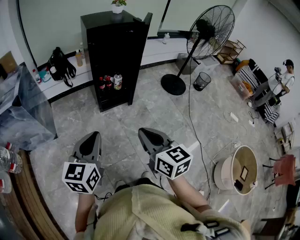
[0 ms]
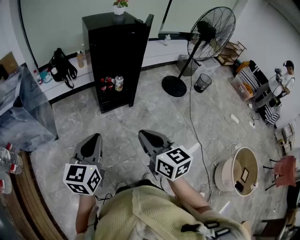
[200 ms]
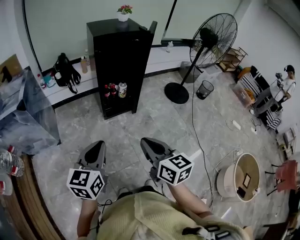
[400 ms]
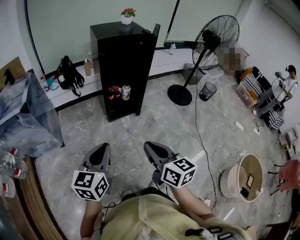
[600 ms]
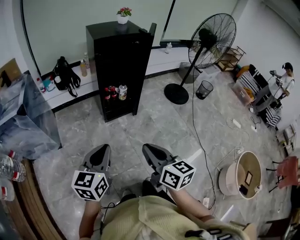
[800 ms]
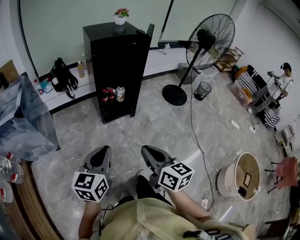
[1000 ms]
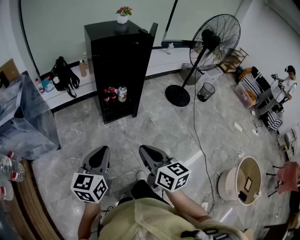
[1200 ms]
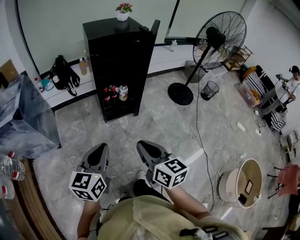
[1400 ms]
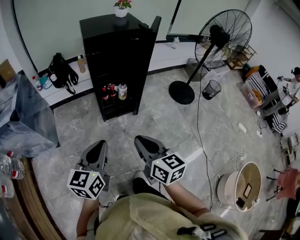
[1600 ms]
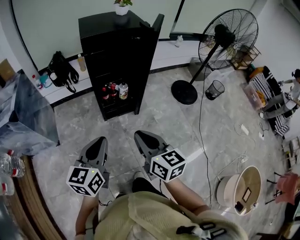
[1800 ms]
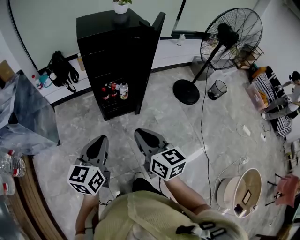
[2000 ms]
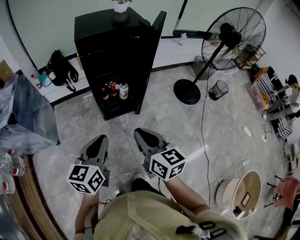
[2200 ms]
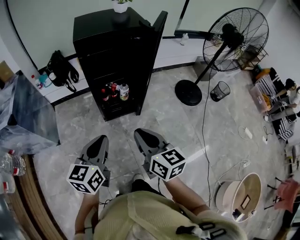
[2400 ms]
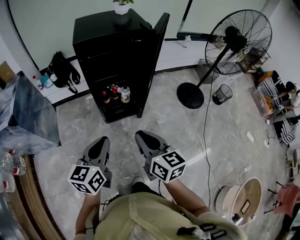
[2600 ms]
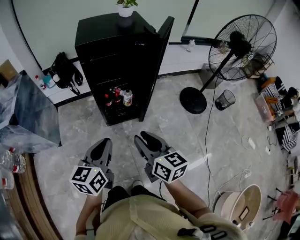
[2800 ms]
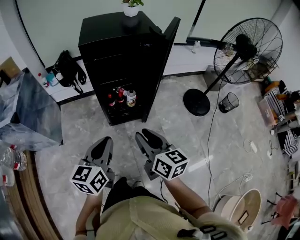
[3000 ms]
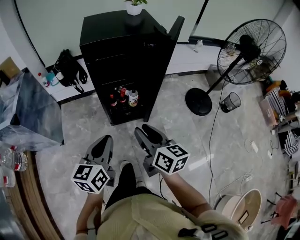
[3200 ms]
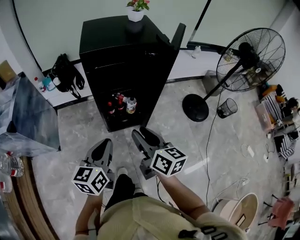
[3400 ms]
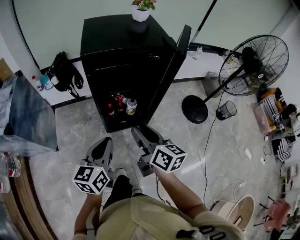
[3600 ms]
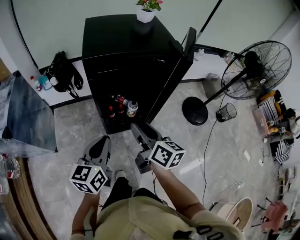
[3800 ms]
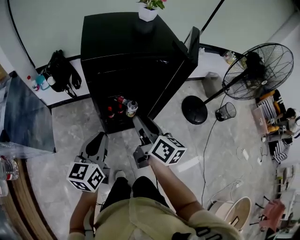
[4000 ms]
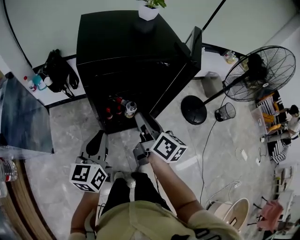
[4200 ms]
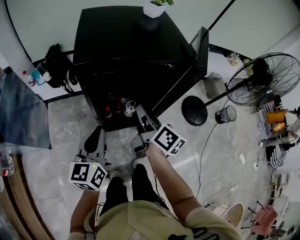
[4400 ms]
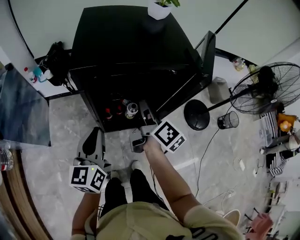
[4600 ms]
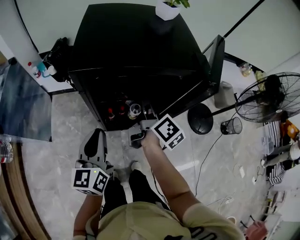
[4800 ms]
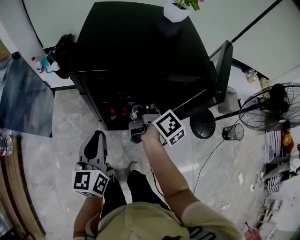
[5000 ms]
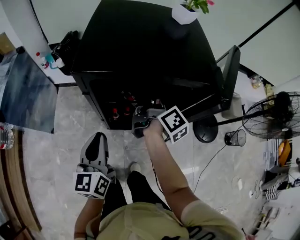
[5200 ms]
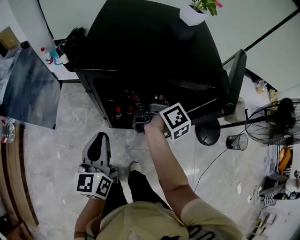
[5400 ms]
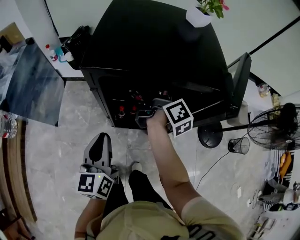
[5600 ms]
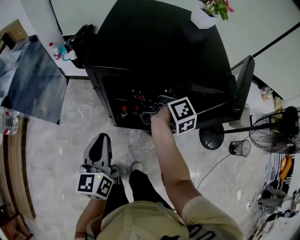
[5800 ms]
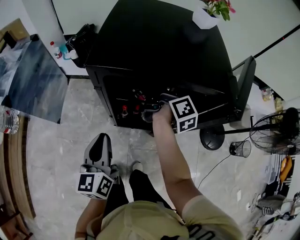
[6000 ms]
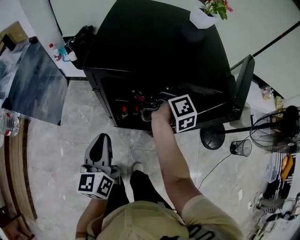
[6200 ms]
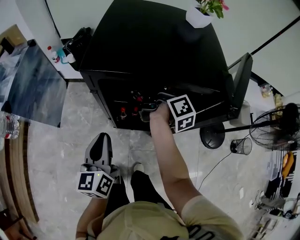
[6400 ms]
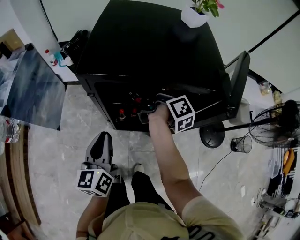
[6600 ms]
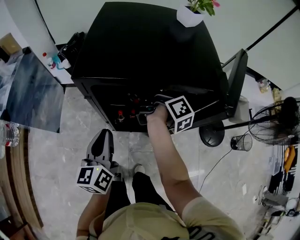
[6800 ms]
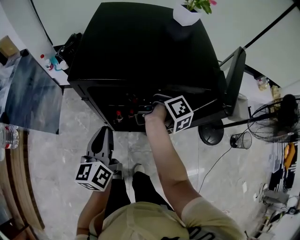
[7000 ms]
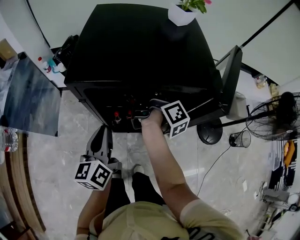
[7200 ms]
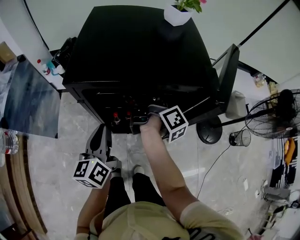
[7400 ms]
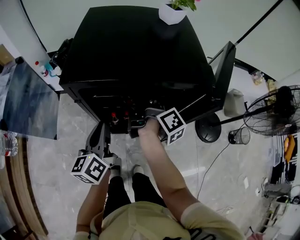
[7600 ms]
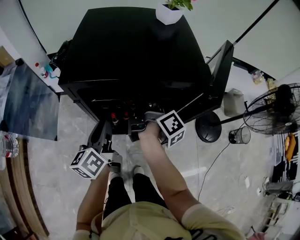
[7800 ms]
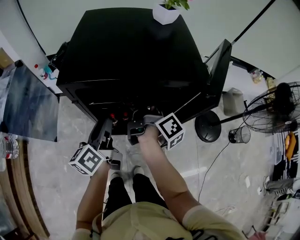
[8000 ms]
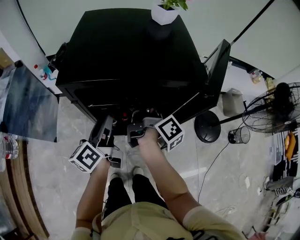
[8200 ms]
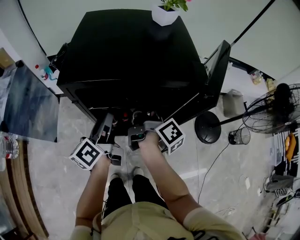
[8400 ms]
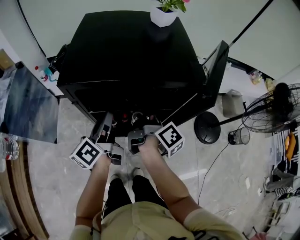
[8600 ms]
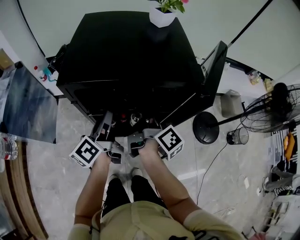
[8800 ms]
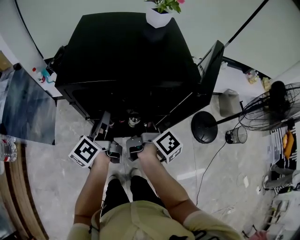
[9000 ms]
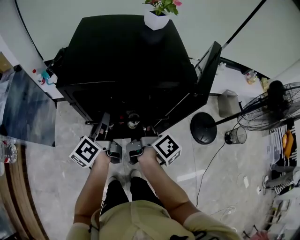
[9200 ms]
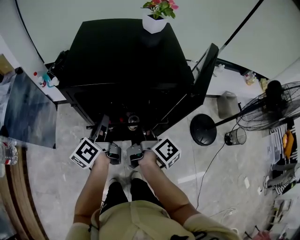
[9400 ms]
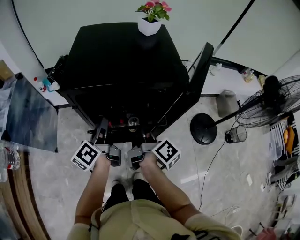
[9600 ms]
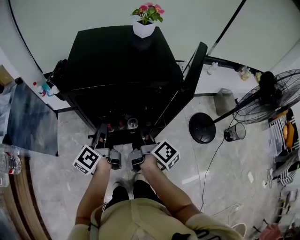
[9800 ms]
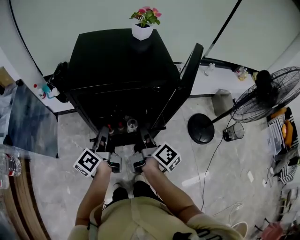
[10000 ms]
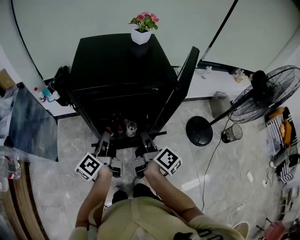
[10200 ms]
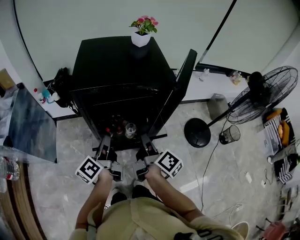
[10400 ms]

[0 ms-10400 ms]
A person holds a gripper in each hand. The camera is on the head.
0 ms to 1400 ms: Both grippers travel together forward, approximately 10 cm.
1400 ms to 3000 ms: The left gripper moves forward and to the right, some 20 cm. Meanwhile the right gripper heads forward, covering some 20 cm, and opens.
3000 ms to 4400 ms: The two grippers go approximately 25 cm forward. The right gripper swivels about 30 degrees.
4400 ms to 6000 ms: The right gripper heads forward, covering roughly 20 cm. The left gripper swivels some 30 degrees.
6000 ms to 7400 ms: The left gripper heads forward, covering about 5 cm.
7400 ms to 9000 ms: The left gripper shifts roughly 5 cm forward, turns by about 30 degrees, and opens. Meanwhile the right gripper travels backward by about 10 cm.
9000 ms to 10400 ms: The grippers both shift backward by roughly 10 cm. The left gripper closes its fingers.

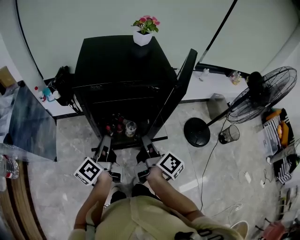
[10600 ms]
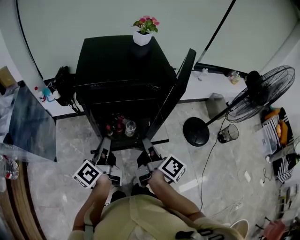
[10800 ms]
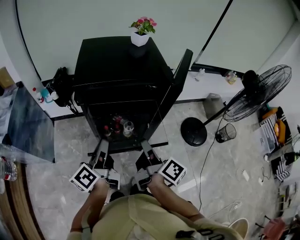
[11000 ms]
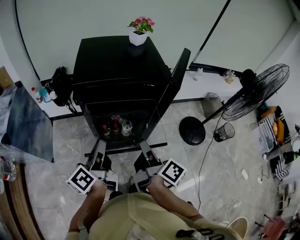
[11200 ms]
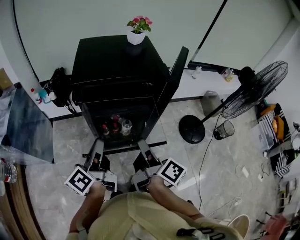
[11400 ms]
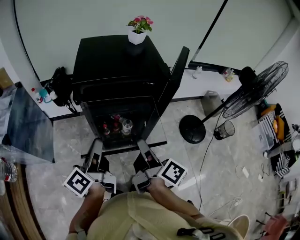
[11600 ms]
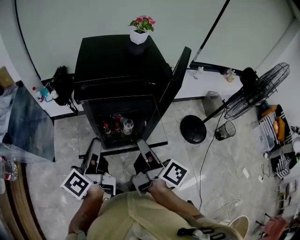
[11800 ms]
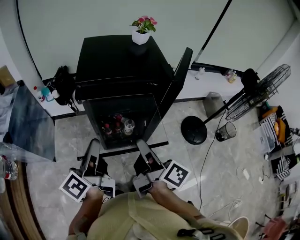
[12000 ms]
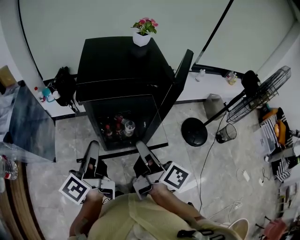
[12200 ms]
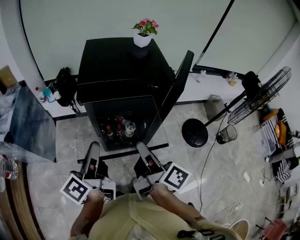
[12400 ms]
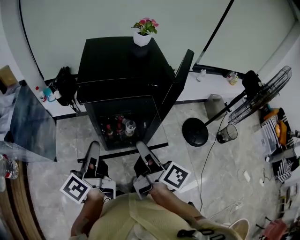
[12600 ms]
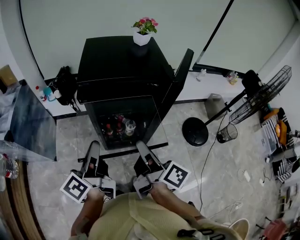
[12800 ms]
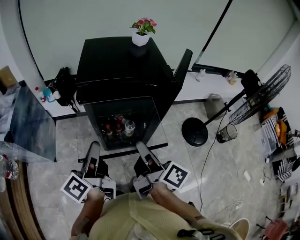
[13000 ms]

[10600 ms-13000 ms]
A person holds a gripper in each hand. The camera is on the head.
10600 ms to 11800 ms: The two grippers go about 10 cm upward and backward.
11800 ms to 13000 ms: The grippers stay close to where they were, moving slightly.

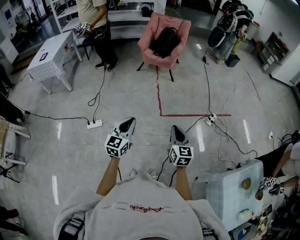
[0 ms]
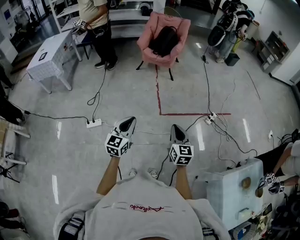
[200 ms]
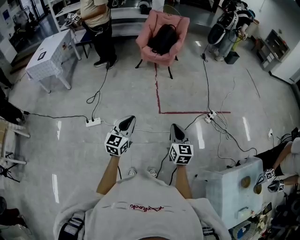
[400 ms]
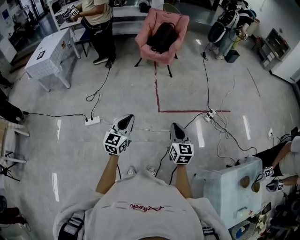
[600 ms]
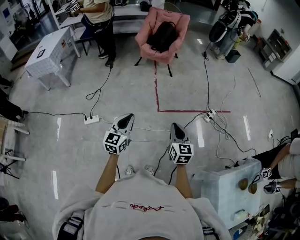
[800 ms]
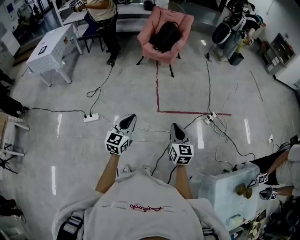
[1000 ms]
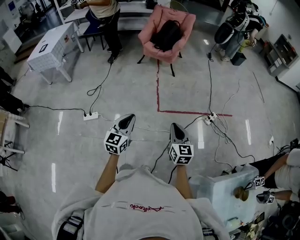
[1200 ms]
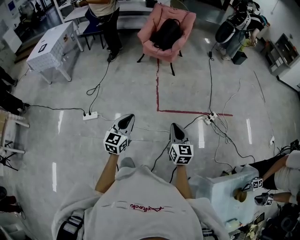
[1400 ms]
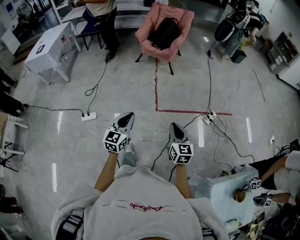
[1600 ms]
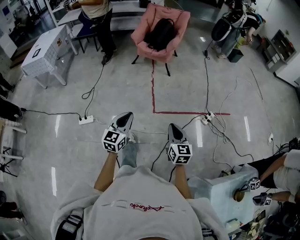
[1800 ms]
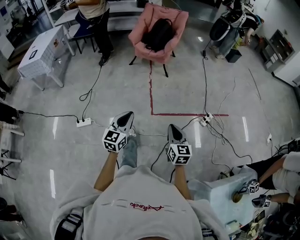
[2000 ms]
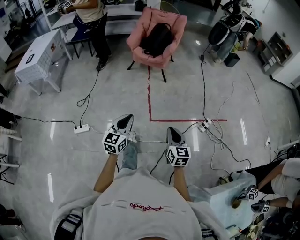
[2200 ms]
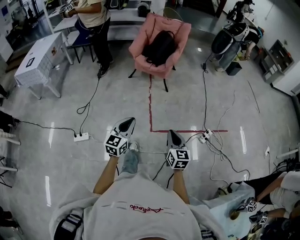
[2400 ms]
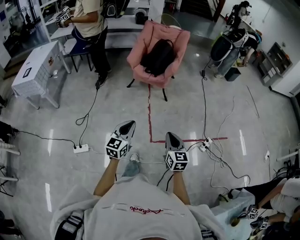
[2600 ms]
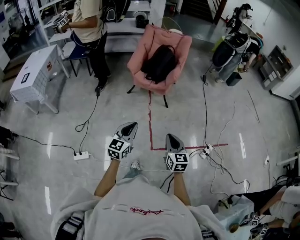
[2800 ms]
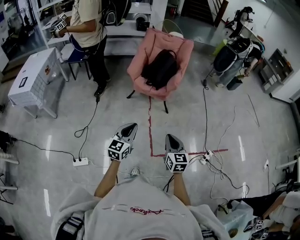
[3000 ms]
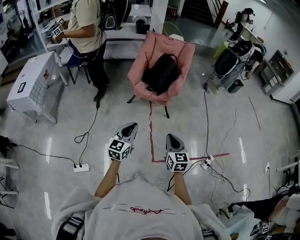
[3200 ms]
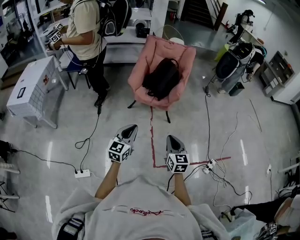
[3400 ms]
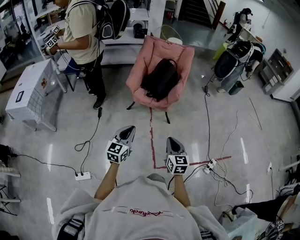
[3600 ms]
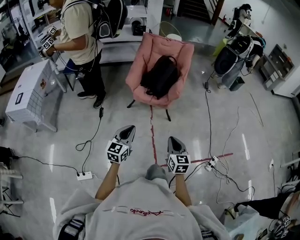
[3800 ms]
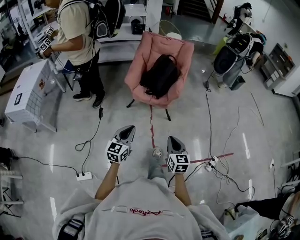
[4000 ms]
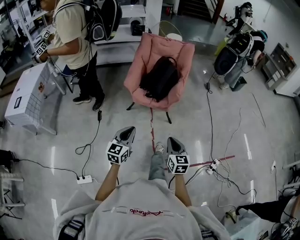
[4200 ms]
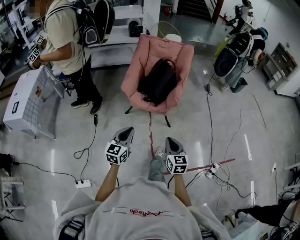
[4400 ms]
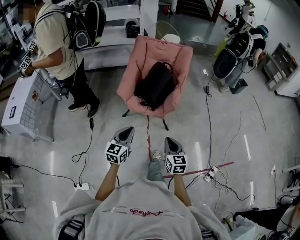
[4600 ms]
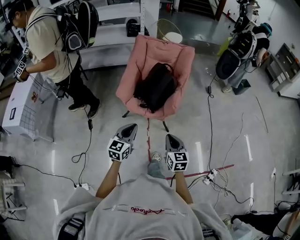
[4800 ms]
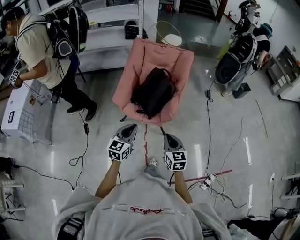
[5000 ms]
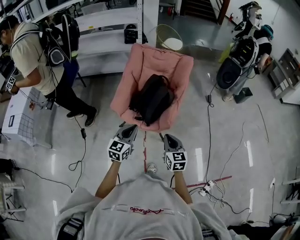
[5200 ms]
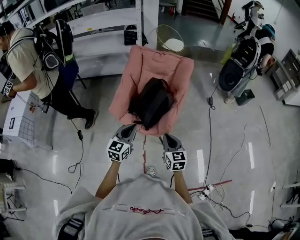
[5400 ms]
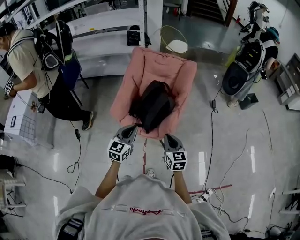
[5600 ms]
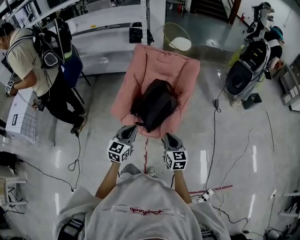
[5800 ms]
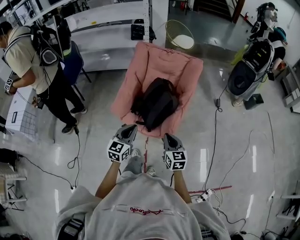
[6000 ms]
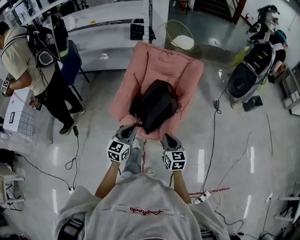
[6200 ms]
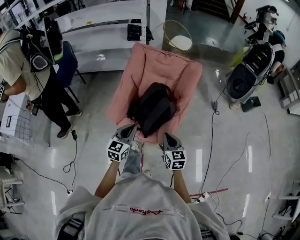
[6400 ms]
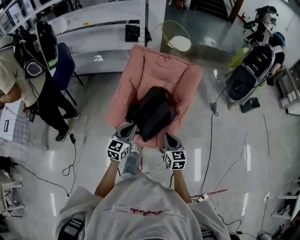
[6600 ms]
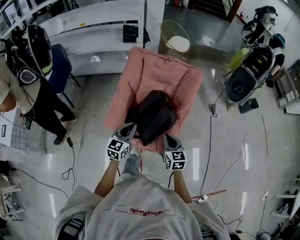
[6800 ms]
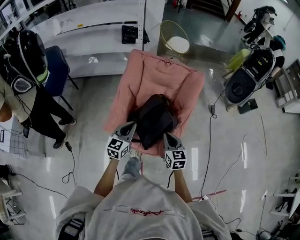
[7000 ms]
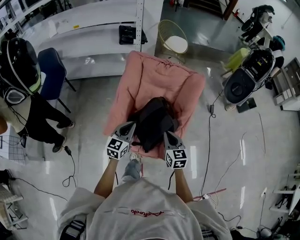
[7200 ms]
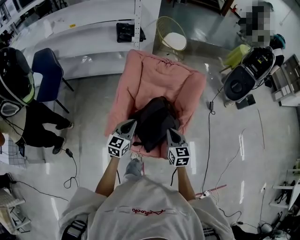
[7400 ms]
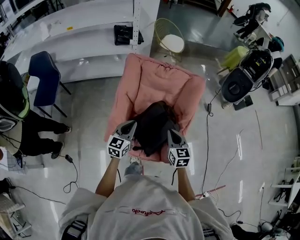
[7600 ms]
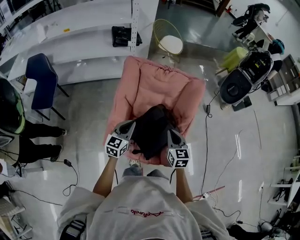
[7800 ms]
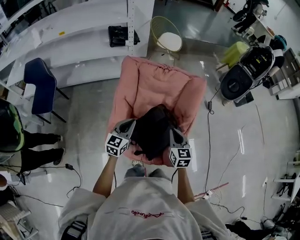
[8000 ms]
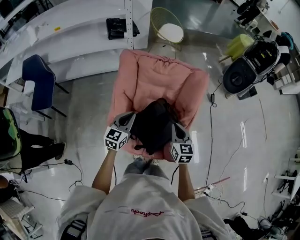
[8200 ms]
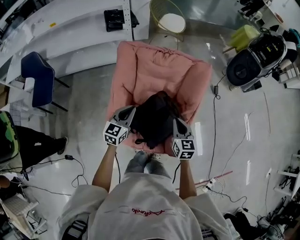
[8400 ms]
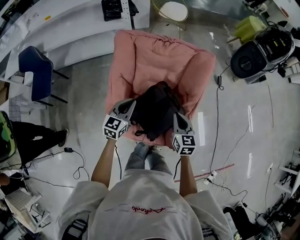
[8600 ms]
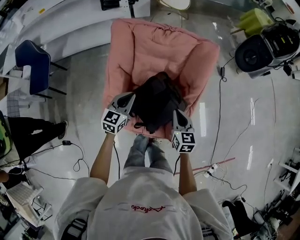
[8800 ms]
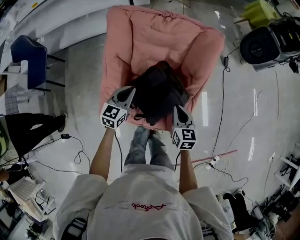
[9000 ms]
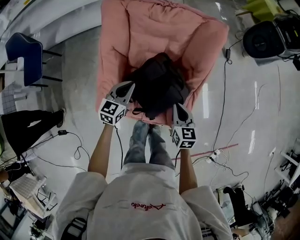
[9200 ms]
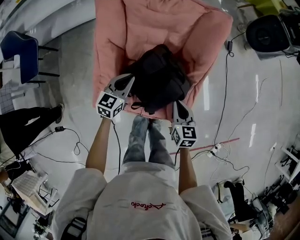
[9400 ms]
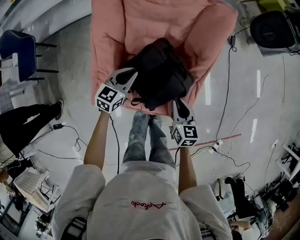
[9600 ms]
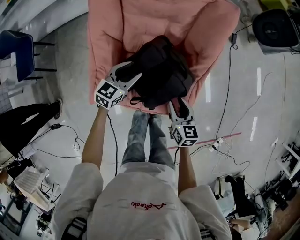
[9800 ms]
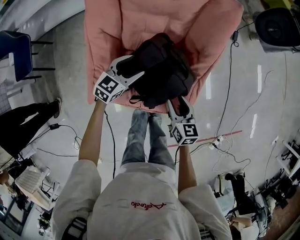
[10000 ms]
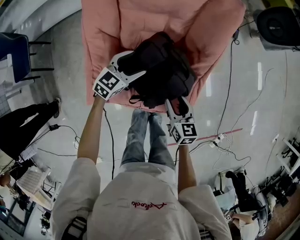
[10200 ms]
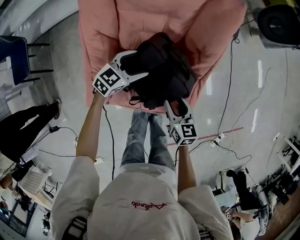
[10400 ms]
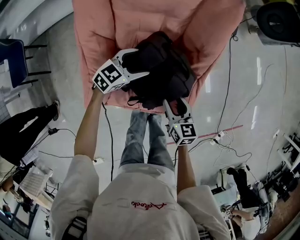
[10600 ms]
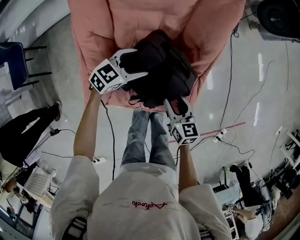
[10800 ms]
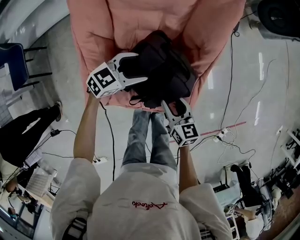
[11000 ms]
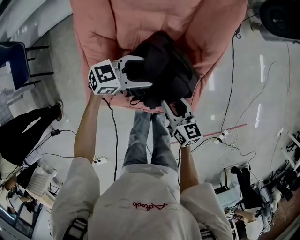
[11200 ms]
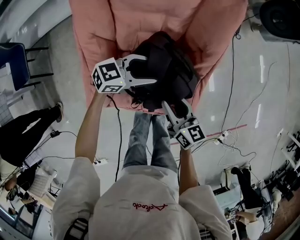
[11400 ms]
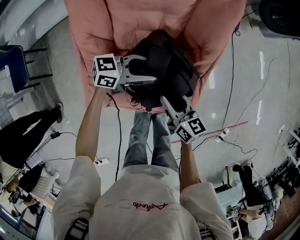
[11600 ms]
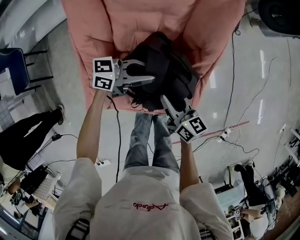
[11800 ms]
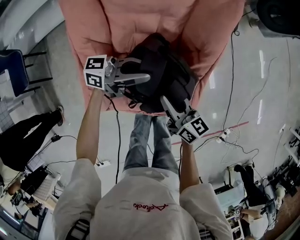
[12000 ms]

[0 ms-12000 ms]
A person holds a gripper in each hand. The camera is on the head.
0 ms to 1600 ms: Both grippers move to the right and forward, some 10 cm.
1600 ms to 3000 ms: The two grippers travel together, forward, roughly 40 cm.
3000 ms to 4400 ms: Both grippers move forward, some 25 cm.
4400 ms to 6000 ms: Both grippers move forward, some 35 cm.
6000 ms to 7600 ms: The grippers both shift forward by approximately 30 cm.
7600 ms to 9000 ms: The right gripper is displaced downward and to the right by about 15 cm. Meanwhile the left gripper shifts some 15 cm downward and forward.
9000 ms to 10400 ms: The left gripper moves downward, to the right and forward, some 15 cm, changes its angle by approximately 30 degrees, and opens up, while the right gripper shifts approximately 10 cm downward, and opens its fingers.
10400 ms to 12000 ms: The right gripper ends up some 5 cm from where it was, rotates some 30 degrees, and closes its fingers. Meanwhile the left gripper shifts approximately 10 cm upward, tips its fingers upward by some 40 degrees, and closes.
